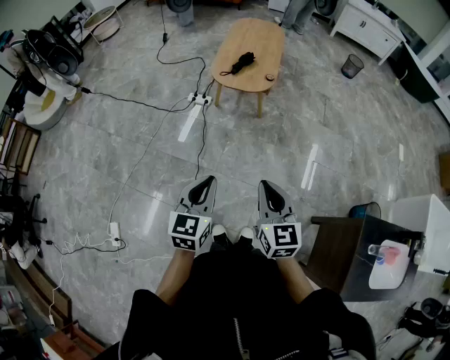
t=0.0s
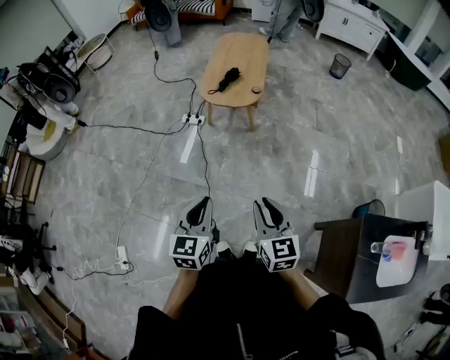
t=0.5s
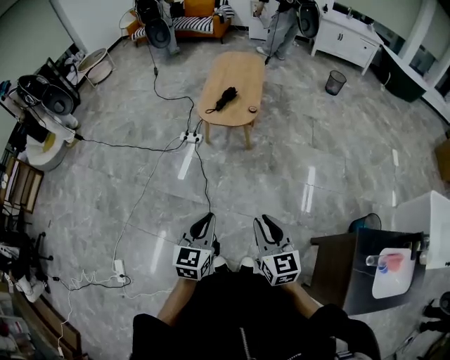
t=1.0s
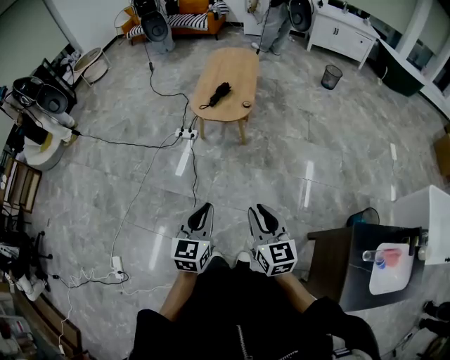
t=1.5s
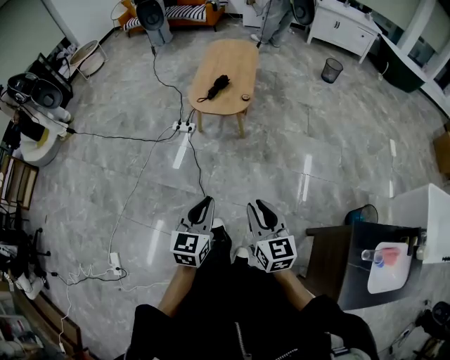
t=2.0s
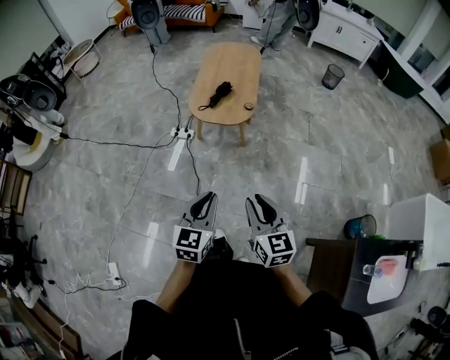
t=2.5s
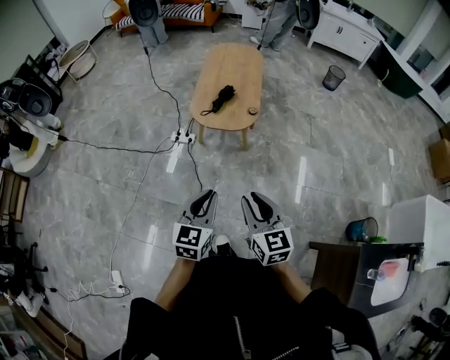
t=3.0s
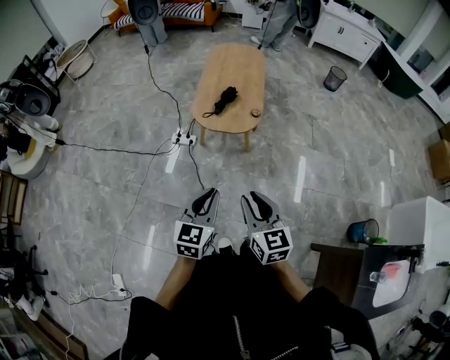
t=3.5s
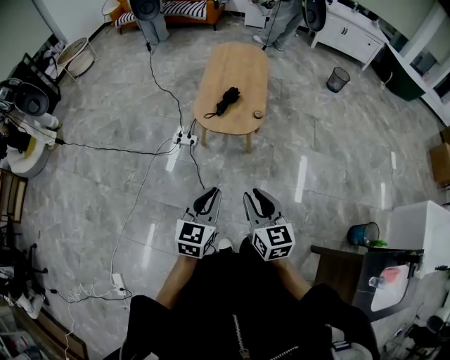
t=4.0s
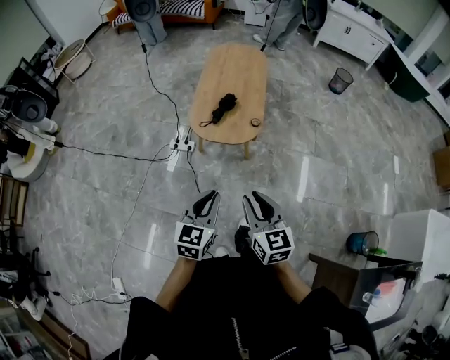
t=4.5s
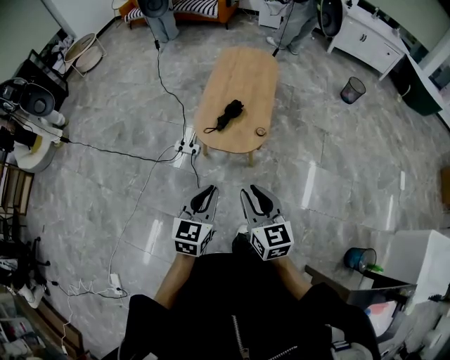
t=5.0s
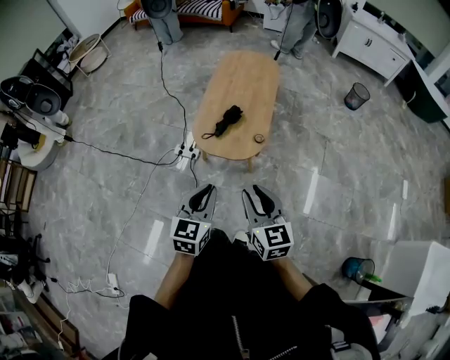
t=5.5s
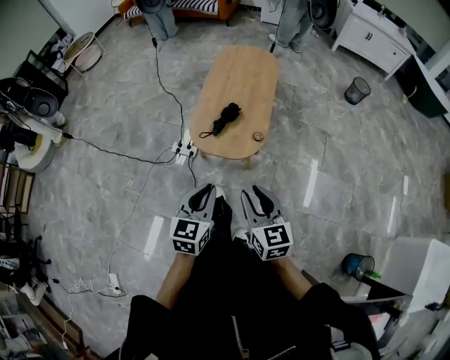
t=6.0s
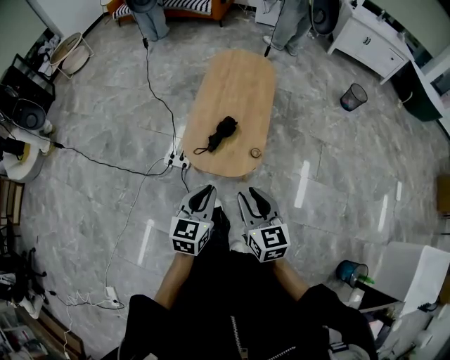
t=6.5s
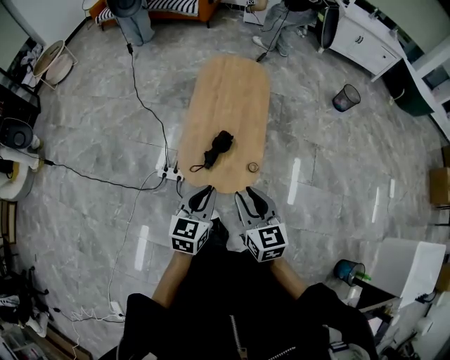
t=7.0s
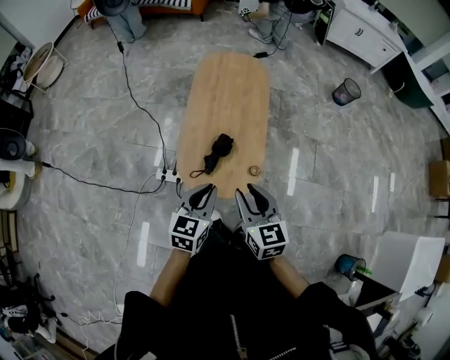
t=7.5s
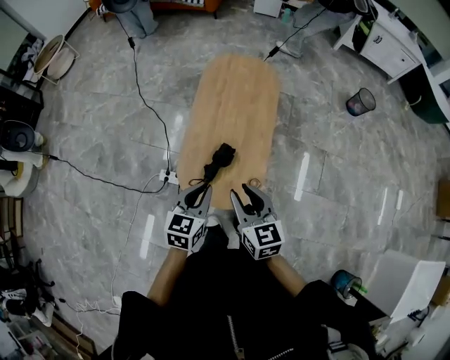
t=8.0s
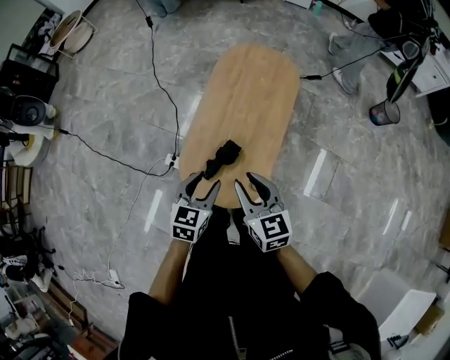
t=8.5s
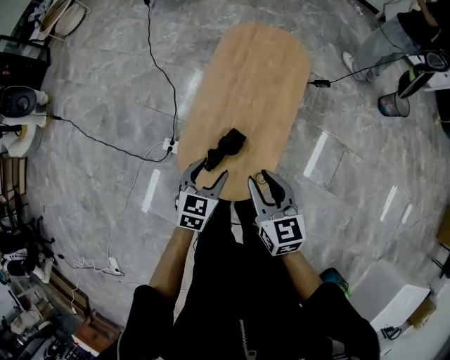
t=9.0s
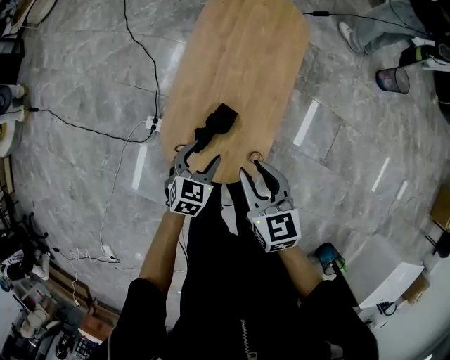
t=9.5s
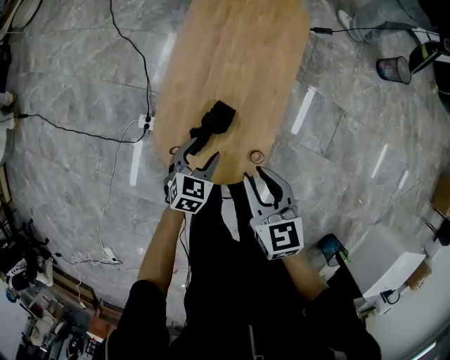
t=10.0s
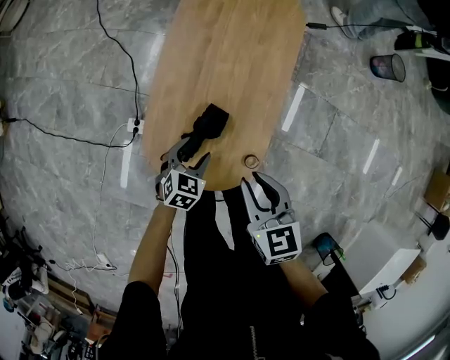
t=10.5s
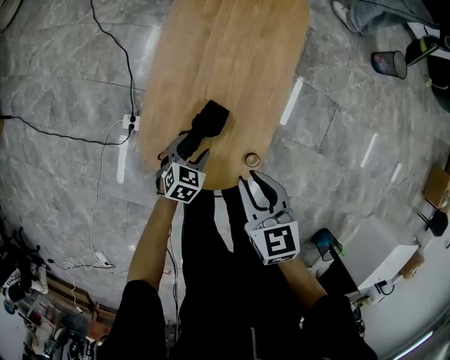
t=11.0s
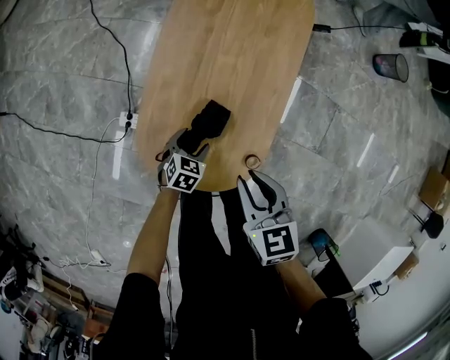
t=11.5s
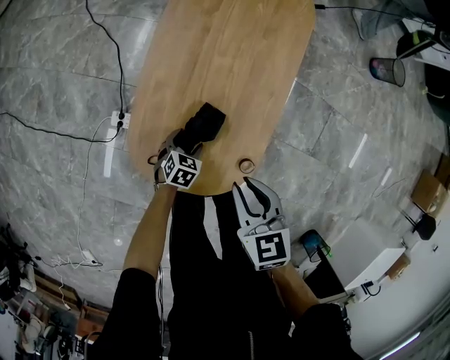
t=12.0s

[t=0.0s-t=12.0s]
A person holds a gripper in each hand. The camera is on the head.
t=0.0s to t=2.0s: Both grippers travel together to the right, roughly 10 cm.
t=2.0s to t=4.0s: Both grippers move forward and to the left, about 25 cm.
t=4.0s to t=6.0s: The left gripper shifts some 20 cm forward. The right gripper shifts approximately 20 cm forward and to the right.
t=6.0s to t=8.0s: The grippers both shift forward by about 35 cm.
t=8.0s to t=10.0s: The right gripper moves downward and forward, approximately 15 cm; the left gripper is displaced downward by some 25 cm, turns by roughly 20 degrees, and opens up.
t=10.0s to t=12.0s: The right gripper heads downward, covering approximately 10 cm. The left gripper shifts roughly 20 cm downward.

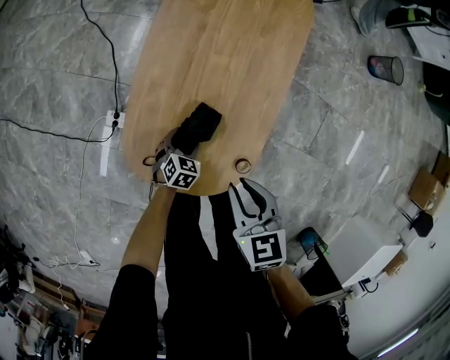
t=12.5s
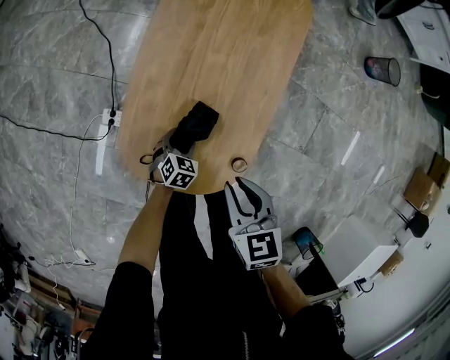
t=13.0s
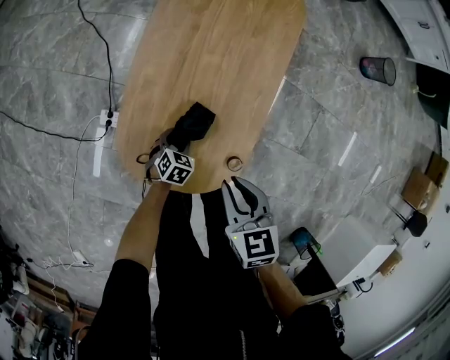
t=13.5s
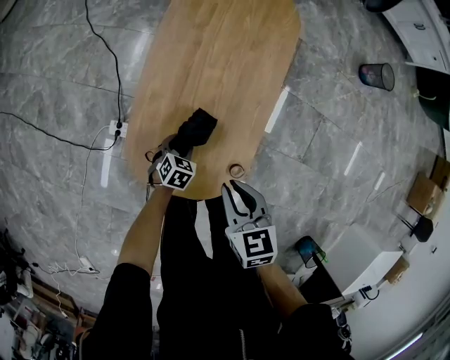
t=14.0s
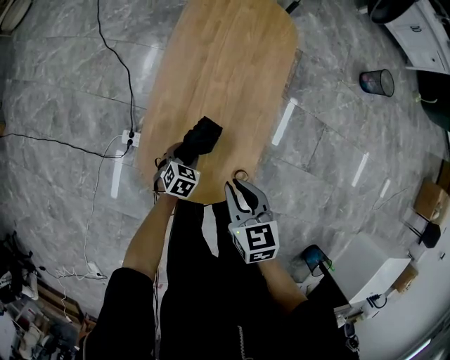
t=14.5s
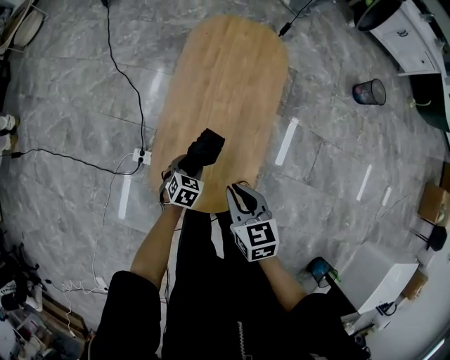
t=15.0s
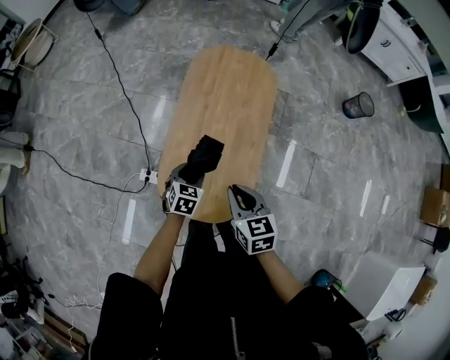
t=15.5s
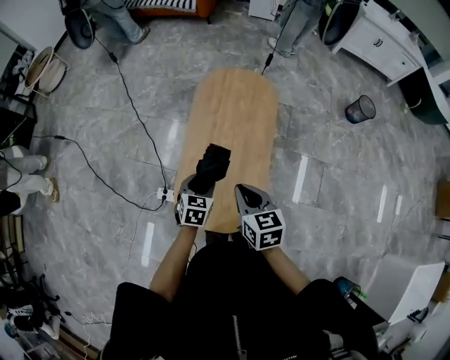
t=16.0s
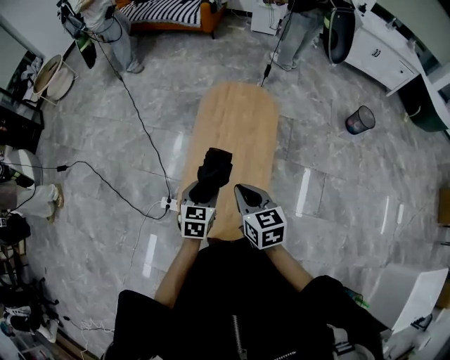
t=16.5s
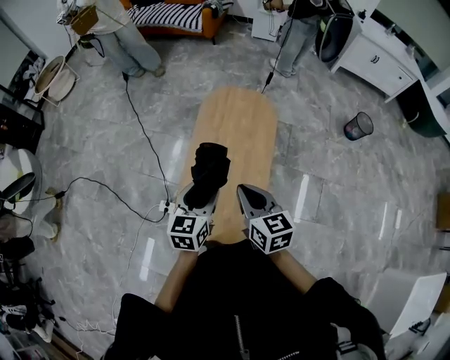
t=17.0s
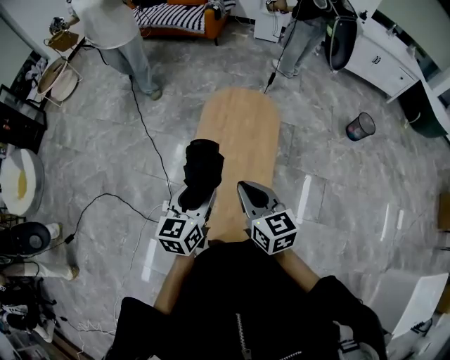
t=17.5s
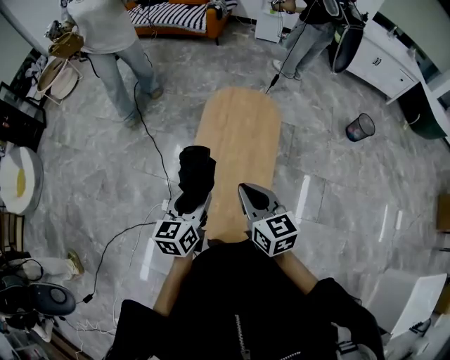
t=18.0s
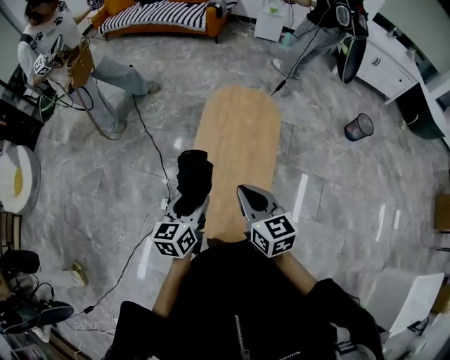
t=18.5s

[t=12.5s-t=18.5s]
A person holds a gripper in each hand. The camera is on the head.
t=12.5s to t=14.5s: The left gripper goes approximately 10 cm upward. Meanwhile the right gripper ends up some 5 cm from where it was.
t=14.5s to t=16.5s: The left gripper is displaced upward by approximately 30 cm, and rotates some 30 degrees, while the right gripper moves upward, roughly 20 cm.
t=16.5s to t=18.5s: The right gripper moves upward, roughly 5 cm. Meanwhile the left gripper goes approximately 10 cm upward and to the left, and changes its angle by about 30 degrees.

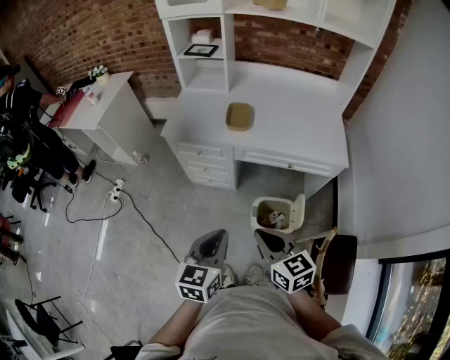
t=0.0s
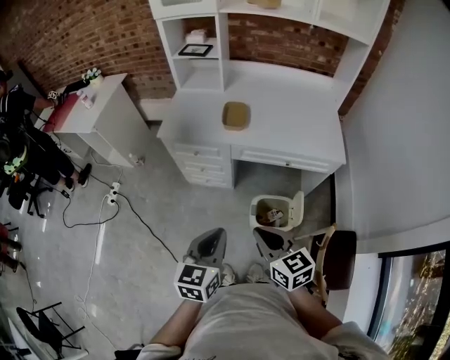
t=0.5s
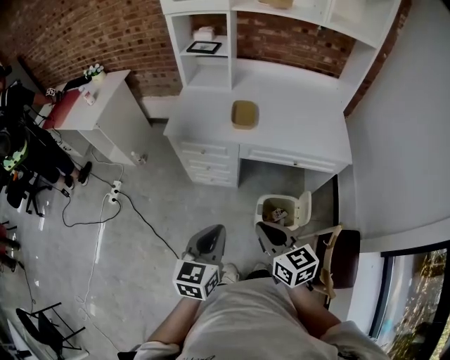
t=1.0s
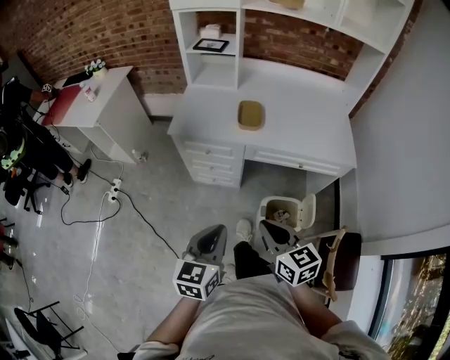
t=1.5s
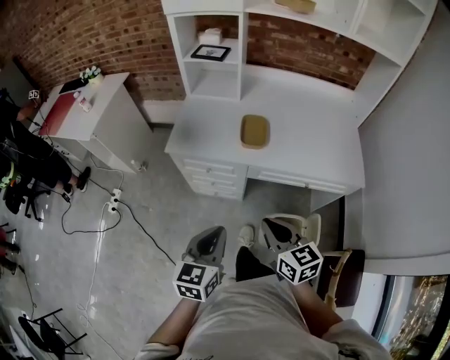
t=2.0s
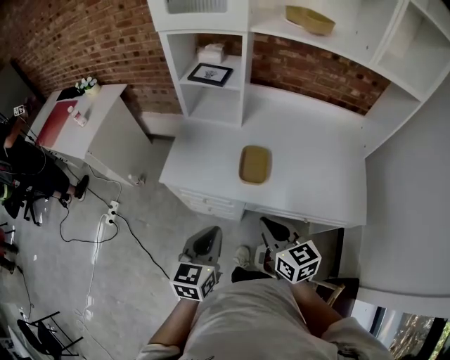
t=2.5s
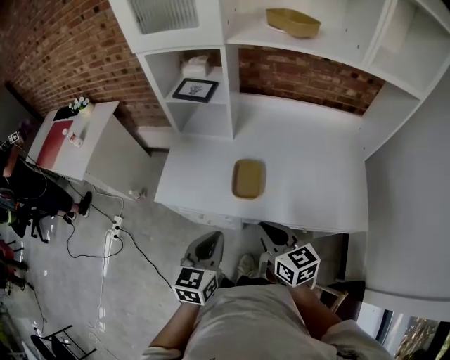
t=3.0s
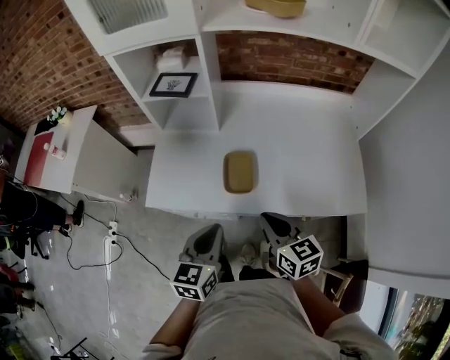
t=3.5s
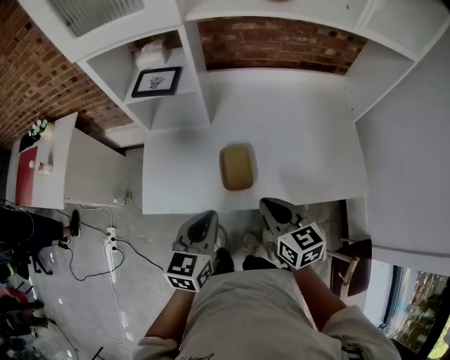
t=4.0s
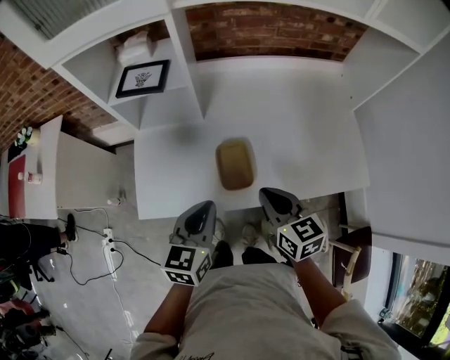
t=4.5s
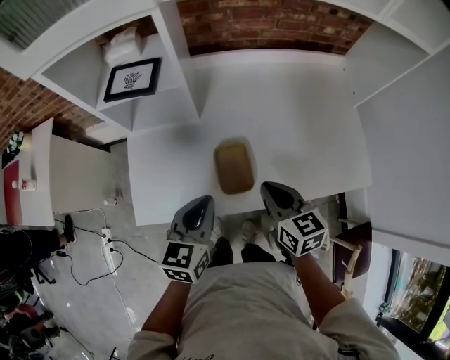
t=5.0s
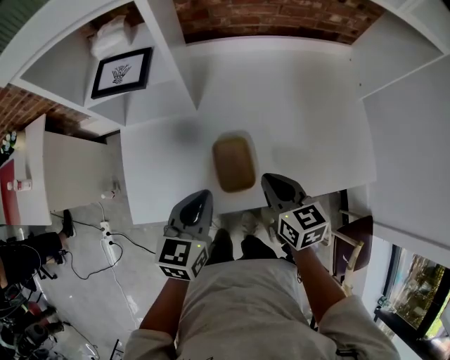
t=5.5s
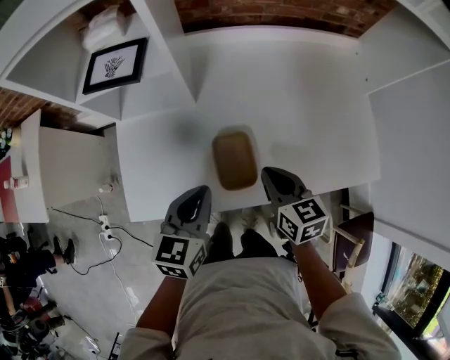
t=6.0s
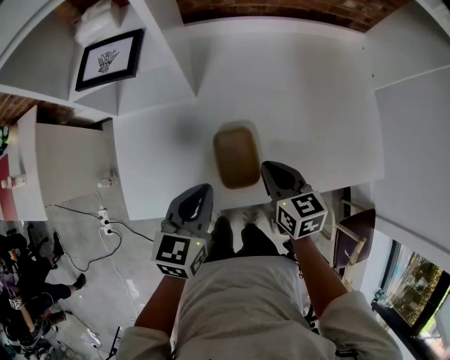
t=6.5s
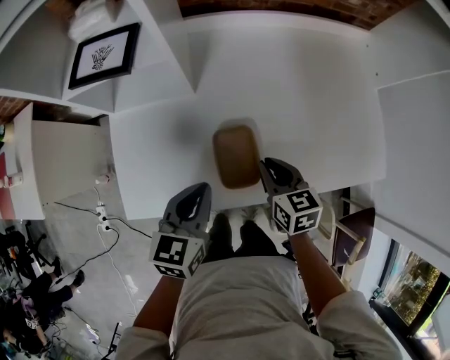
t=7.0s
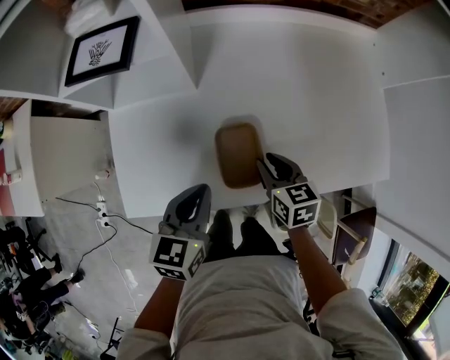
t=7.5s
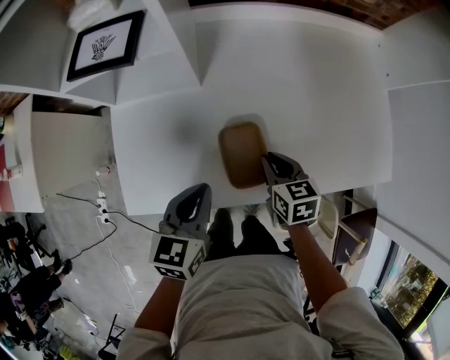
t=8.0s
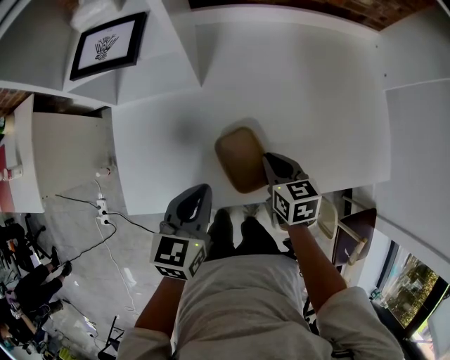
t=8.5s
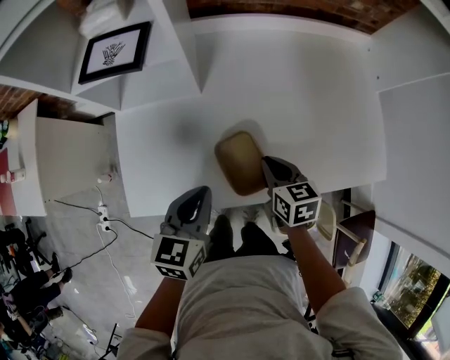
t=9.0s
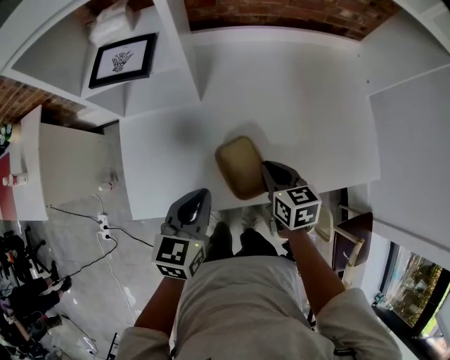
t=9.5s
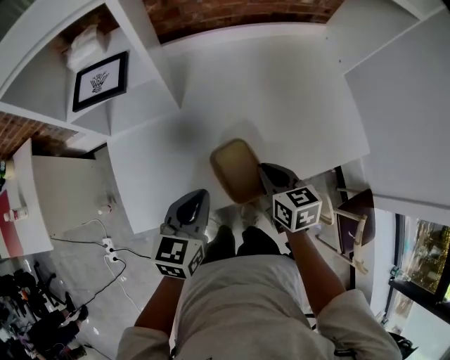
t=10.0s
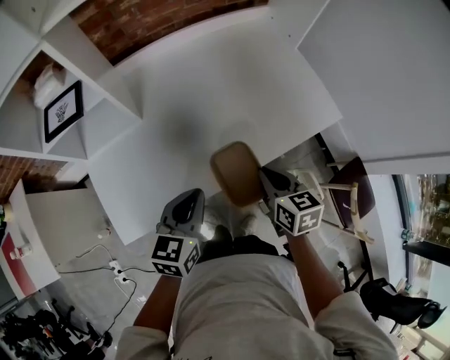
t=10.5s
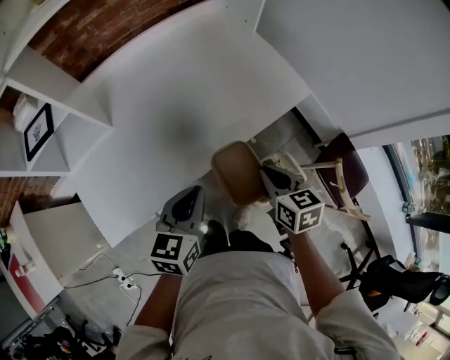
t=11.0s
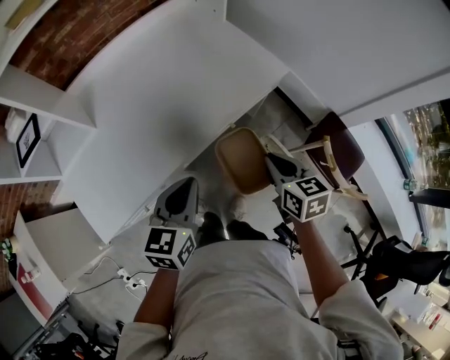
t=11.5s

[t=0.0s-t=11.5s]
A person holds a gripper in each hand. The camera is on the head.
t=0.0s to t=2.0s: The left gripper shifts some 15 cm forward and to the left, while the right gripper goes approximately 15 cm forward.
t=2.0s to t=4.0s: The grippers both shift forward by approximately 30 cm.
t=4.0s to t=6.0s: The grippers both shift forward and downward by roughly 15 cm.
t=6.0s to t=7.5s: The right gripper travels downward by roughly 10 cm.
t=7.5s to t=9.5s: The grippers move only a little.
t=9.5s to t=11.5s: The right gripper changes place by some 35 cm, and rotates roughly 30 degrees; the left gripper moves approximately 25 cm, and changes its angle by roughly 30 degrees.
